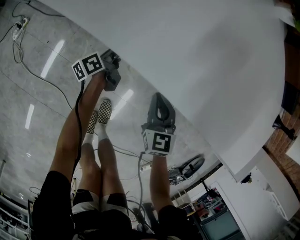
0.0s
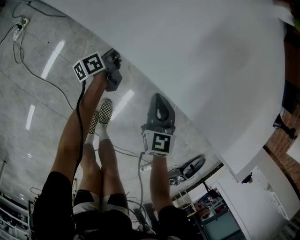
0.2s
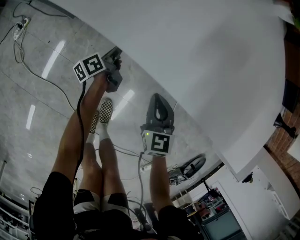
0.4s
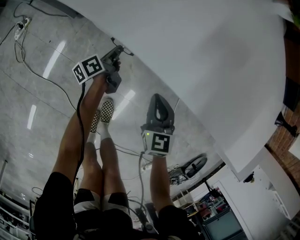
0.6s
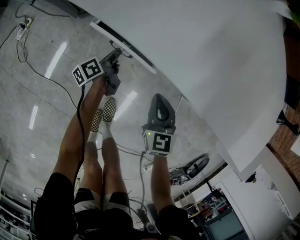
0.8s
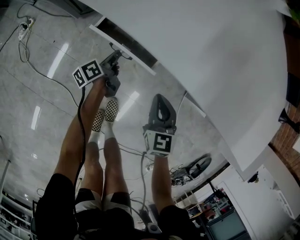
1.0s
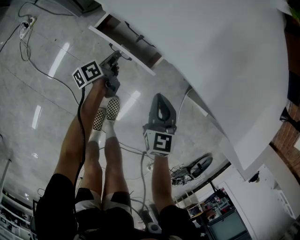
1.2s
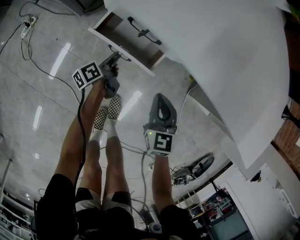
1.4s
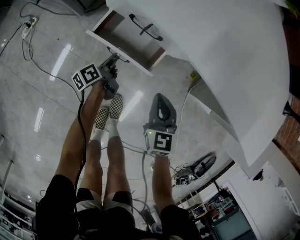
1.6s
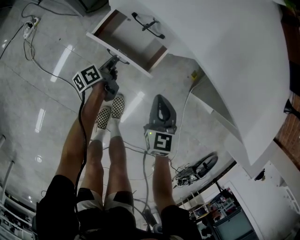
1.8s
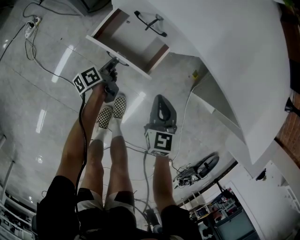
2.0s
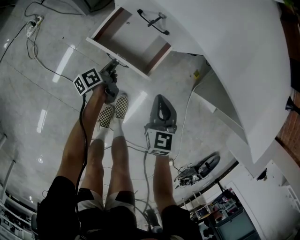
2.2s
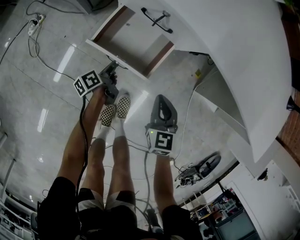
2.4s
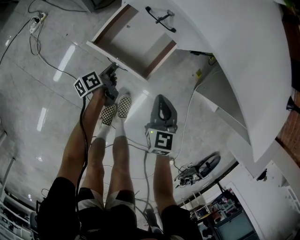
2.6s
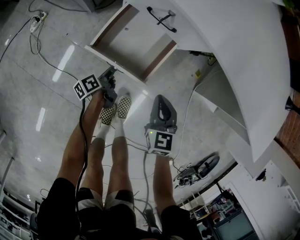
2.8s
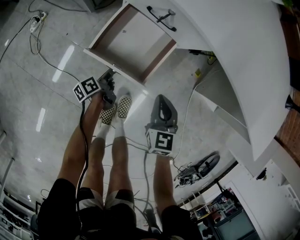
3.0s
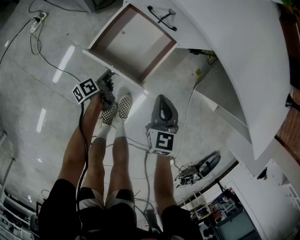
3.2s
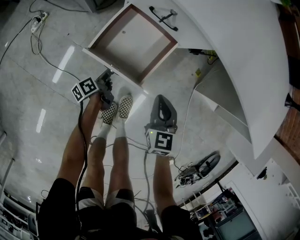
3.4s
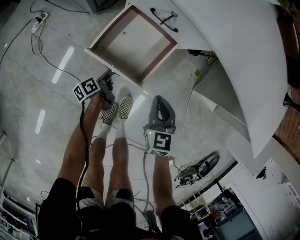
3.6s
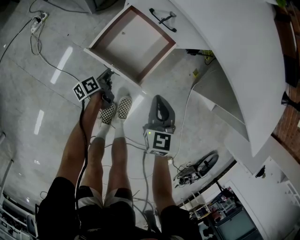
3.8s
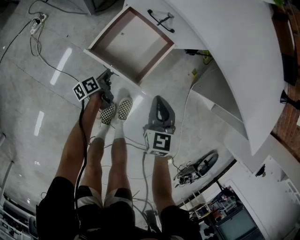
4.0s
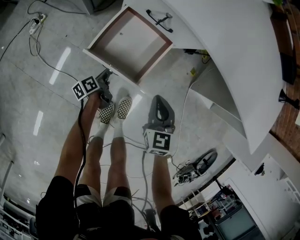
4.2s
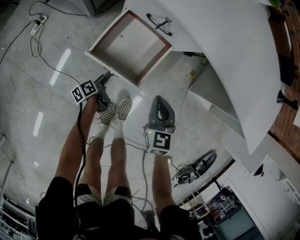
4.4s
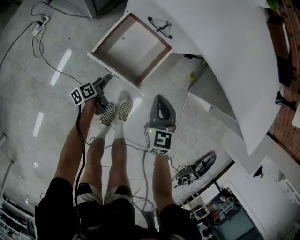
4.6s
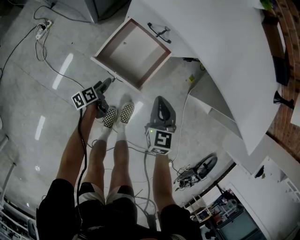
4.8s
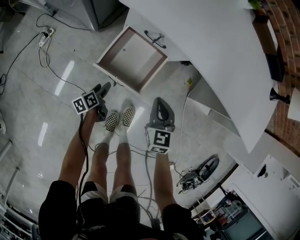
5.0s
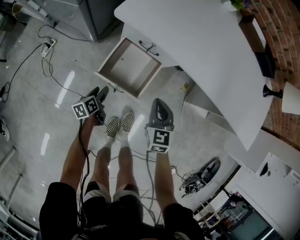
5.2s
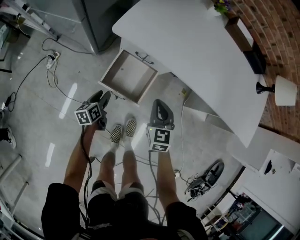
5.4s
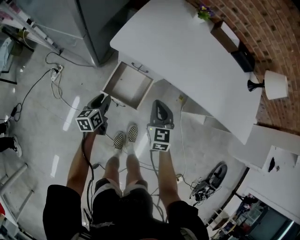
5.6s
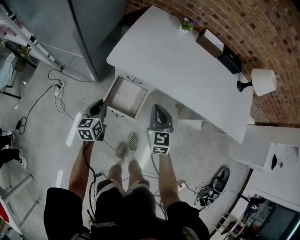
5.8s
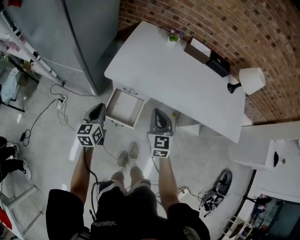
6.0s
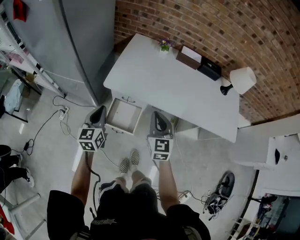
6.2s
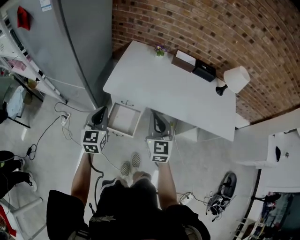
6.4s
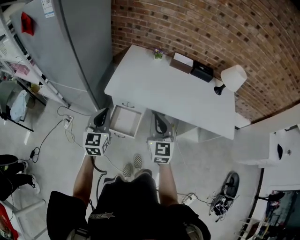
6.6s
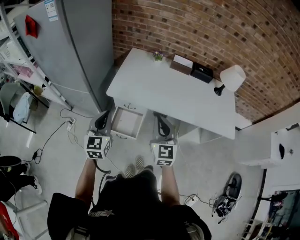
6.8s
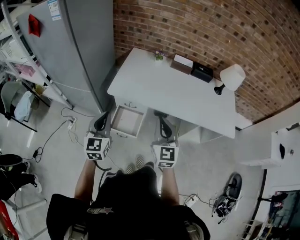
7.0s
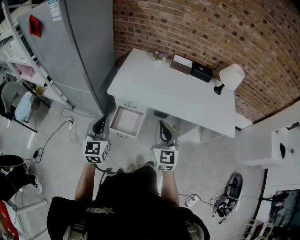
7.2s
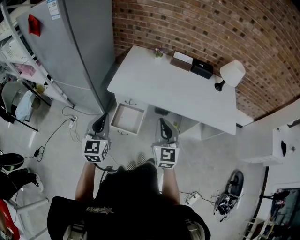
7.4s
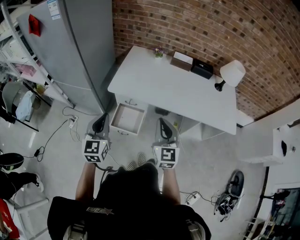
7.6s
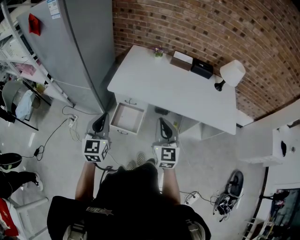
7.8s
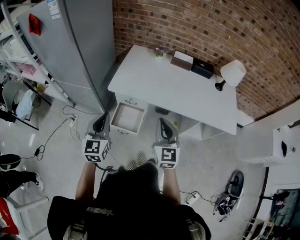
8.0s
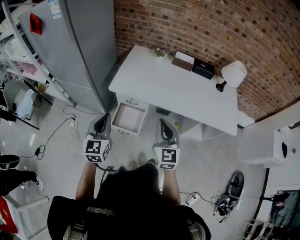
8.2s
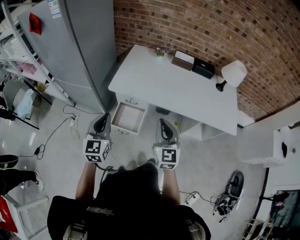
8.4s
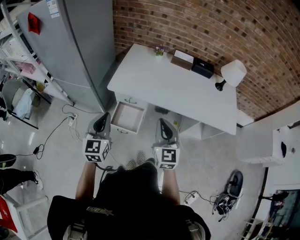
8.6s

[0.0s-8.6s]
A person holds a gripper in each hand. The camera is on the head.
0.0s to 1.4s: Both grippers move backward, some 5 cm.
1.4s to 2.8s: The left gripper is displaced backward by approximately 10 cm. The right gripper moves backward, about 5 cm.
2.8s to 4.4s: The left gripper opens its fingers.
4.4s to 5.8s: The left gripper moves upward, some 40 cm, rolls clockwise, seen from behind, by about 60 degrees, and closes up; the right gripper heads upward, covering about 30 cm.
5.8s to 7.2s: The two grippers go about 30 cm upward. The left gripper rotates some 30 degrees.
7.2s to 8.6s: Both grippers stay about where they are.

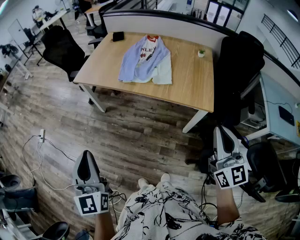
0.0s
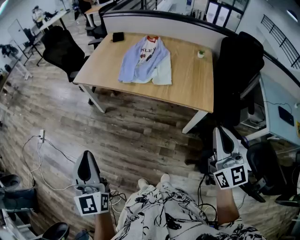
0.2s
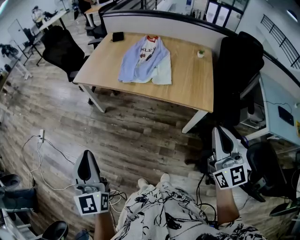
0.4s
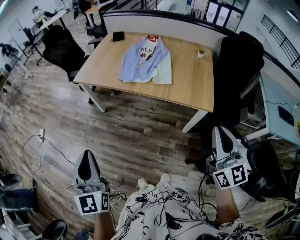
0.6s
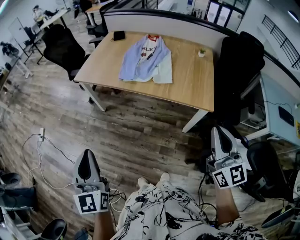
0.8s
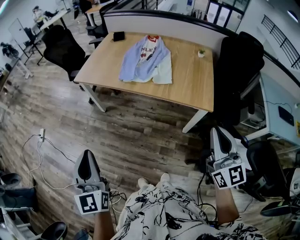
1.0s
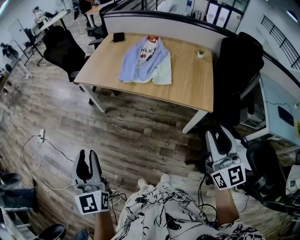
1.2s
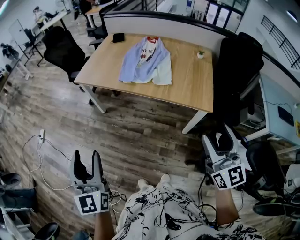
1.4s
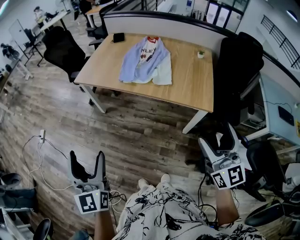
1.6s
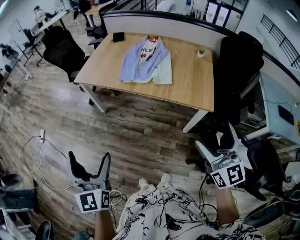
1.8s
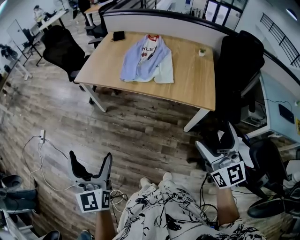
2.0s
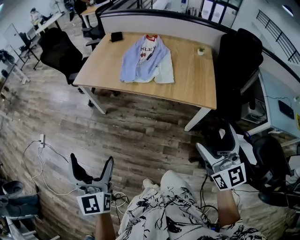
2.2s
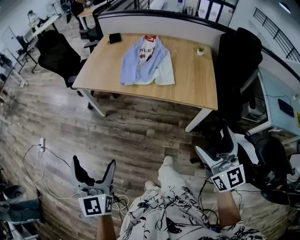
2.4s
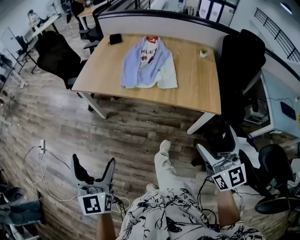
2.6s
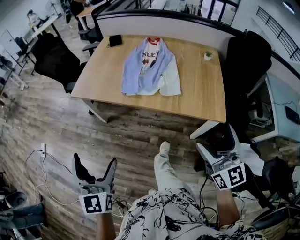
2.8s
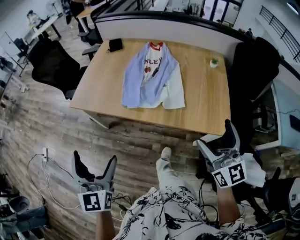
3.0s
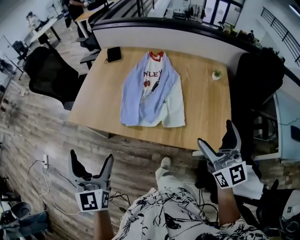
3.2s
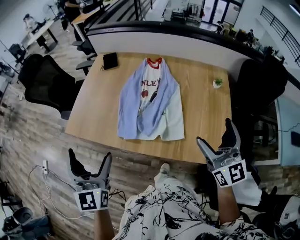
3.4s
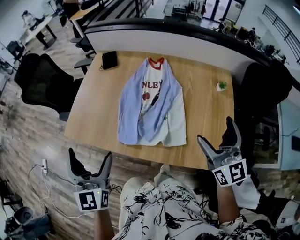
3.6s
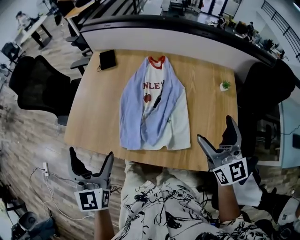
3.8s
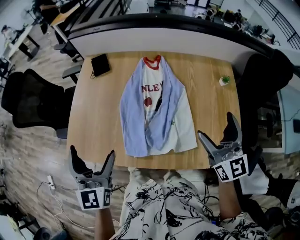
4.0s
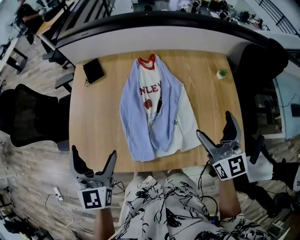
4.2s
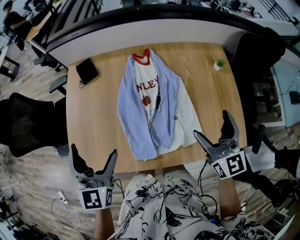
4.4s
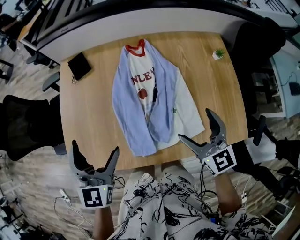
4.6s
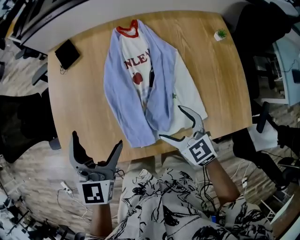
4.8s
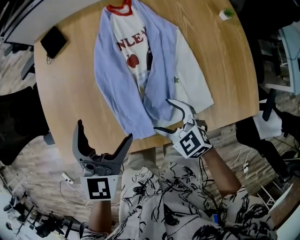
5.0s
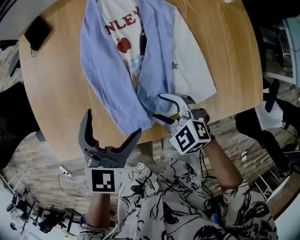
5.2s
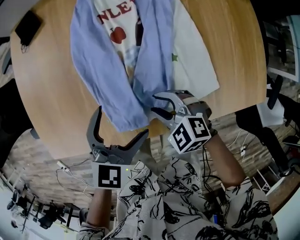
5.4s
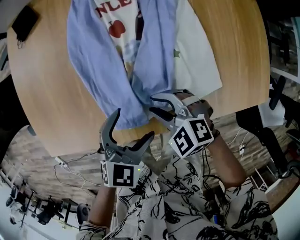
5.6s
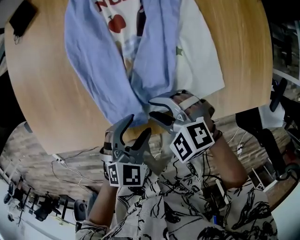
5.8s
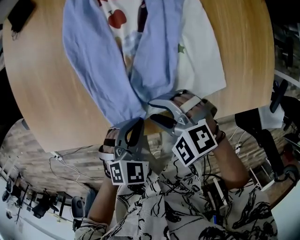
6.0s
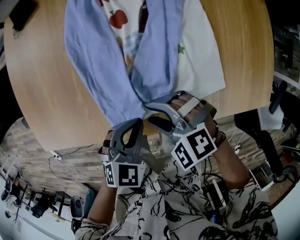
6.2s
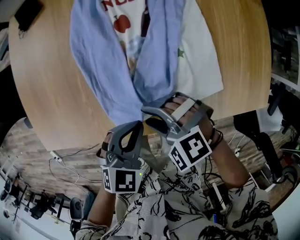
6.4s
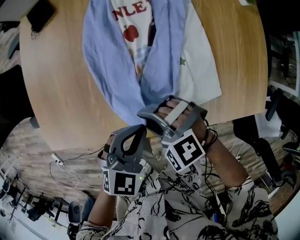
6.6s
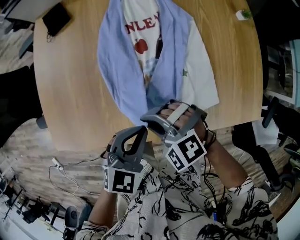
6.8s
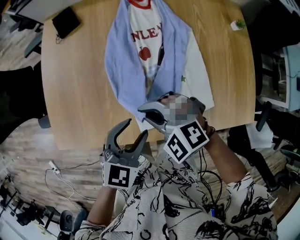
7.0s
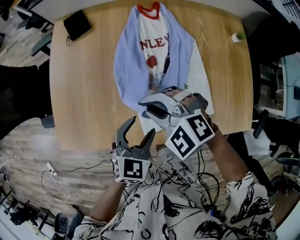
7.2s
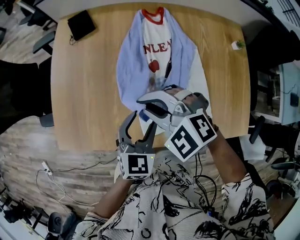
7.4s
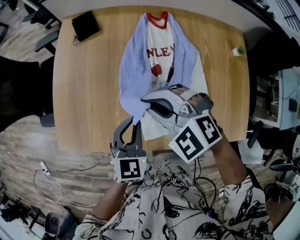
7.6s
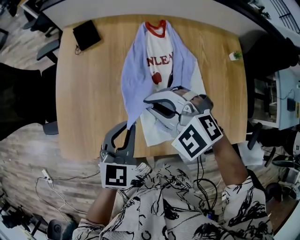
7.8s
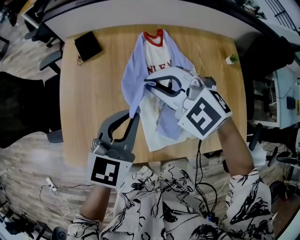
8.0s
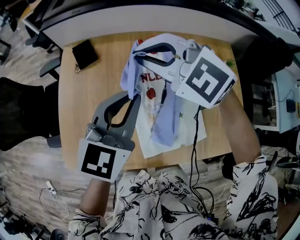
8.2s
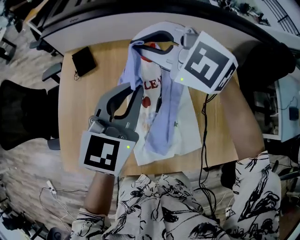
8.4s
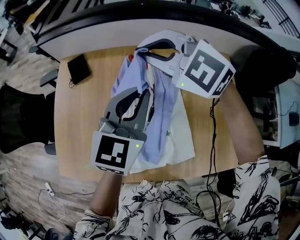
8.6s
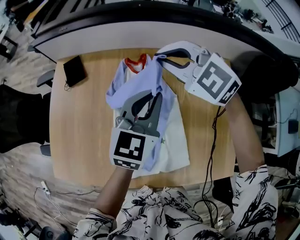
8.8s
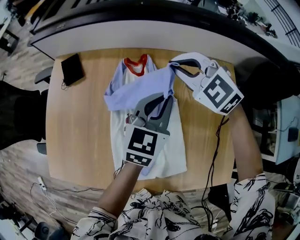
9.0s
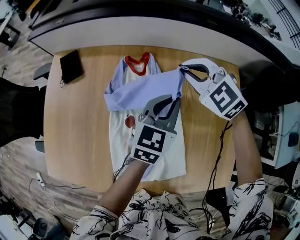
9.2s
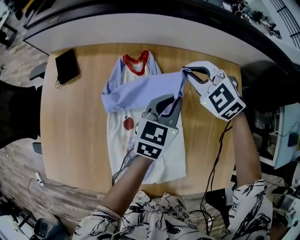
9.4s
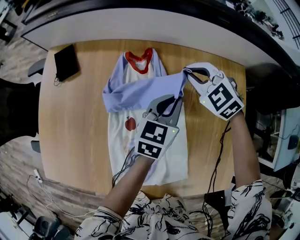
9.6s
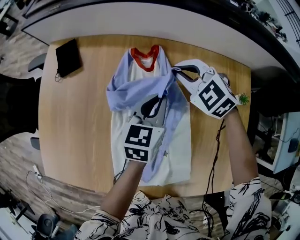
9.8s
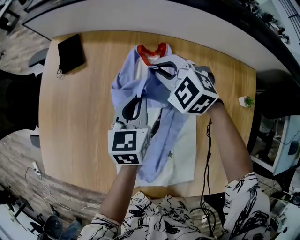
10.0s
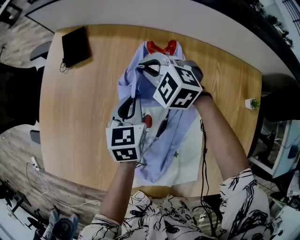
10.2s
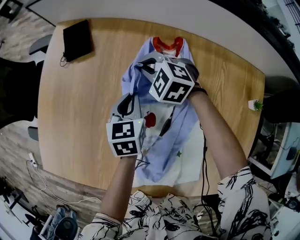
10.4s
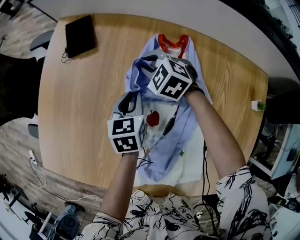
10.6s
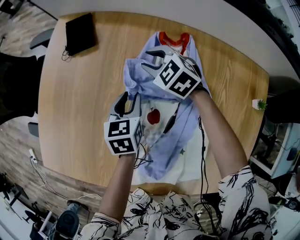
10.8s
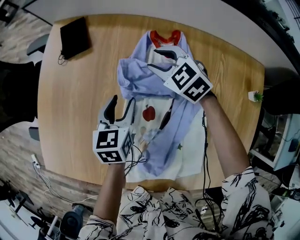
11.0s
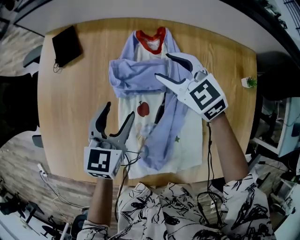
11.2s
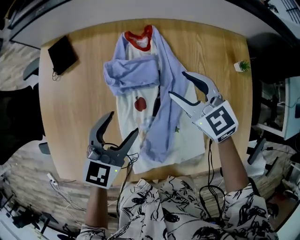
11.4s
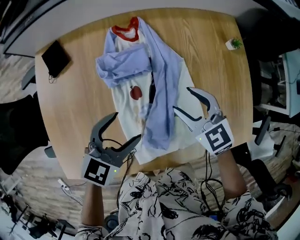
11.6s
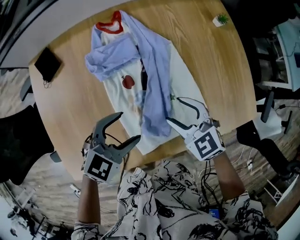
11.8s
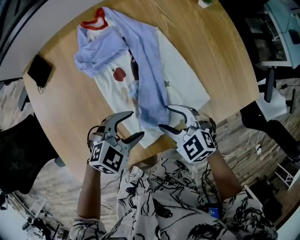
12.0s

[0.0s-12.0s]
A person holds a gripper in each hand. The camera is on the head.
0.0s to 1.6s: The left gripper opens its fingers; the right gripper opens its fingers.
1.6s to 3.0s: The two grippers go some 25 cm forward.
3.0s to 4.4s: The two grippers go about 40 cm forward. The left gripper turns by roughly 20 degrees. The right gripper turns by some 20 degrees.
4.4s to 6.0s: The grippers both shift downward by roughly 35 cm. The left gripper tips its fingers downward by approximately 40 degrees, and closes its fingers, while the right gripper tilts its fingers some 40 degrees downward, and closes up.
6.0s to 7.6s: The two grippers go approximately 20 cm upward. The right gripper swivels some 20 degrees, and closes up, while the left gripper swivels some 40 degrees, and opens and closes again.
7.6s to 9.0s: Both grippers travel together to the right and forward, some 35 cm.
9.0s to 10.4s: Both grippers travel together downward, roughly 25 cm. The left gripper changes its angle by about 40 degrees.
10.4s to 12.0s: The right gripper travels upward and back again, about 10 cm each way, twists roughly 50 degrees clockwise, seen from behind, and opens; the left gripper travels upward and back again, roughly 15 cm each way, rotates approximately 90 degrees, and opens up.

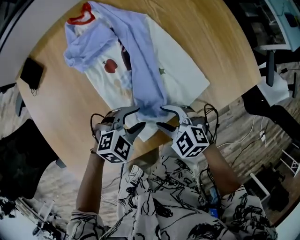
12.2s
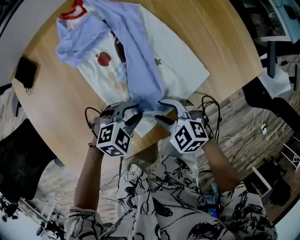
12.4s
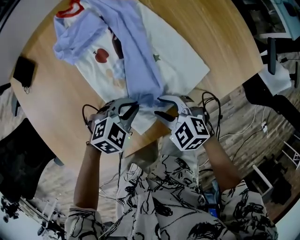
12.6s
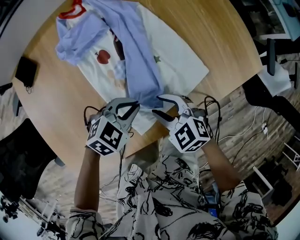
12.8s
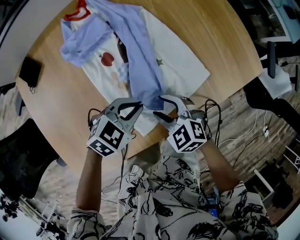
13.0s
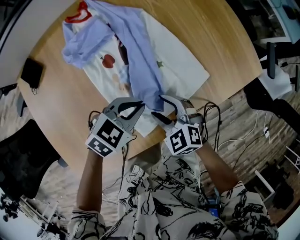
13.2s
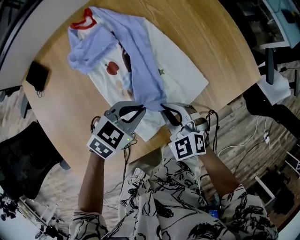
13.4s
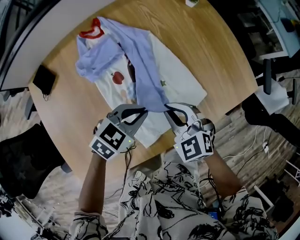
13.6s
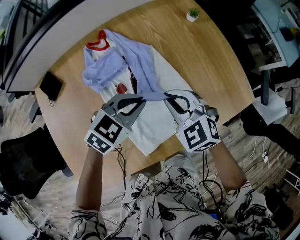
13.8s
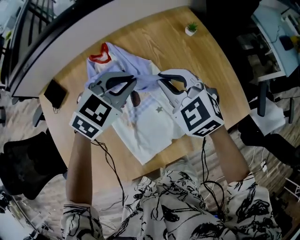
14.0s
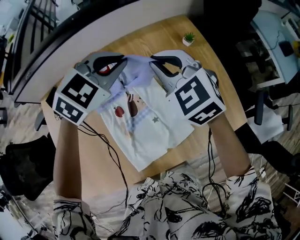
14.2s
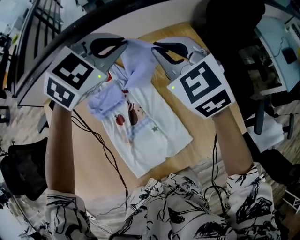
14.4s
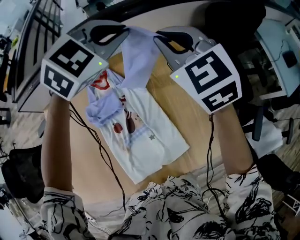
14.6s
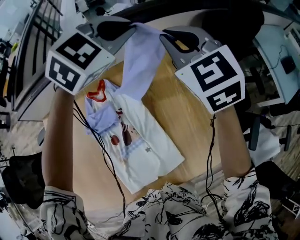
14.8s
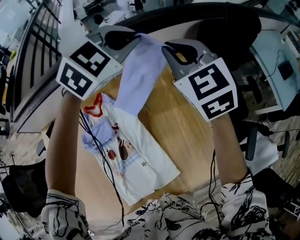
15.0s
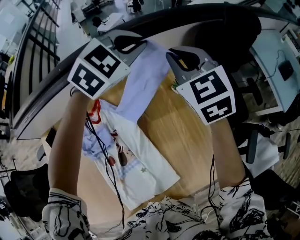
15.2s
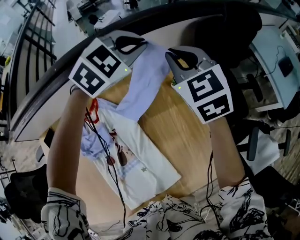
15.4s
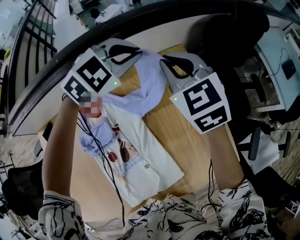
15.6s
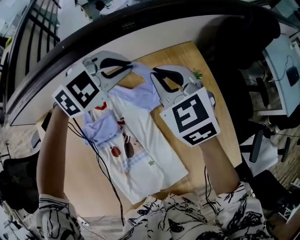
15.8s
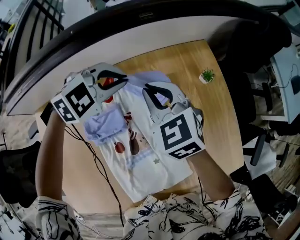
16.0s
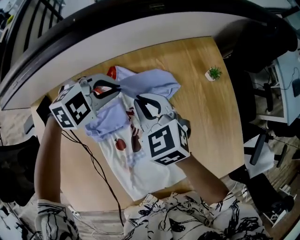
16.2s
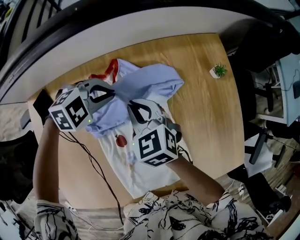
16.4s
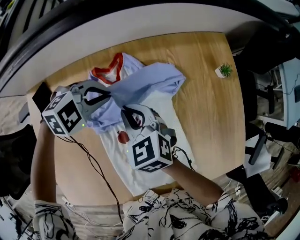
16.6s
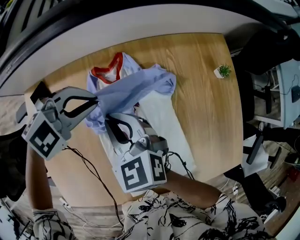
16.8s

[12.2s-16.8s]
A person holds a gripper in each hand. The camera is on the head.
12.2s to 13.8s: The left gripper travels upward by about 15 cm, rotates about 20 degrees, and closes up. Meanwhile the right gripper moves some 20 cm, rotates some 20 degrees, and closes its fingers.
13.8s to 15.2s: The pair of grippers is taken forward, approximately 50 cm. Both grippers travel together upward, roughly 25 cm. The right gripper swivels approximately 20 degrees. Meanwhile the left gripper rotates approximately 30 degrees.
15.2s to 16.8s: The two grippers go about 50 cm to the left, backward and downward. The right gripper changes its angle by approximately 30 degrees, while the left gripper rotates some 20 degrees.
